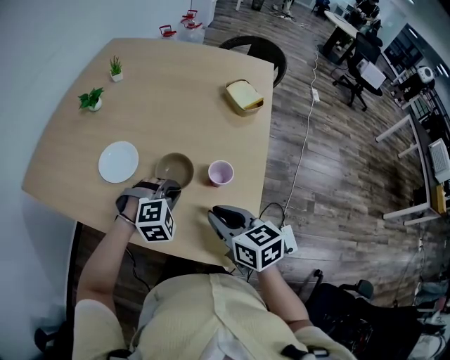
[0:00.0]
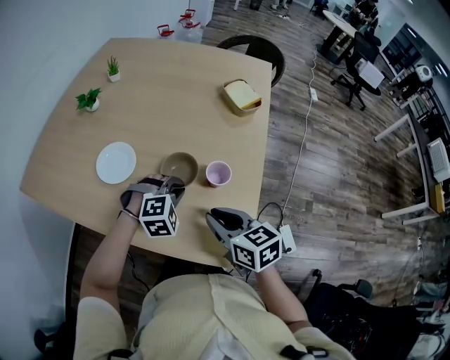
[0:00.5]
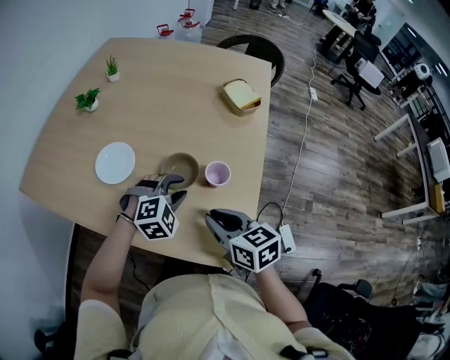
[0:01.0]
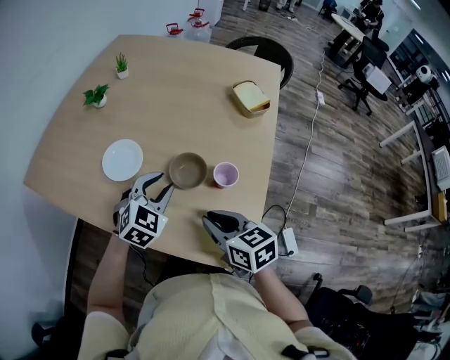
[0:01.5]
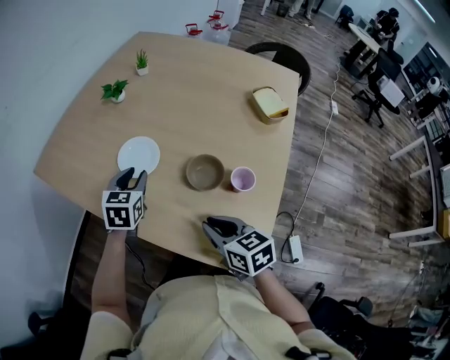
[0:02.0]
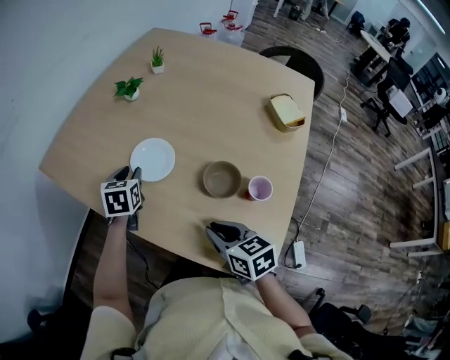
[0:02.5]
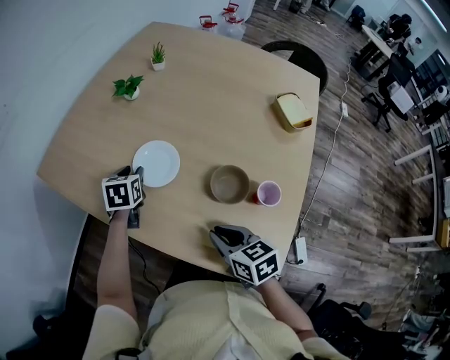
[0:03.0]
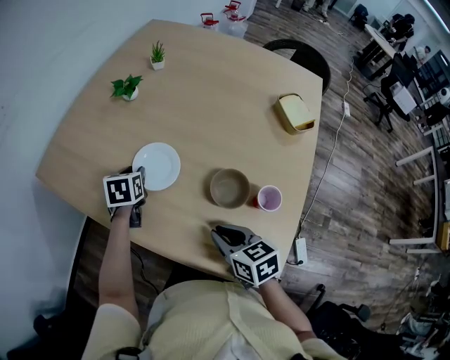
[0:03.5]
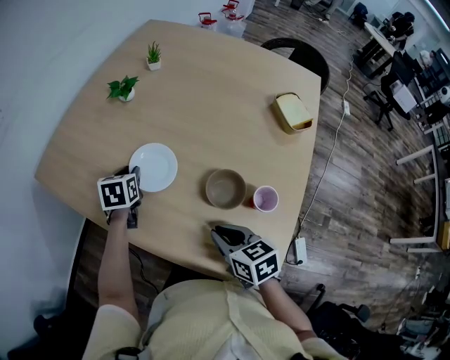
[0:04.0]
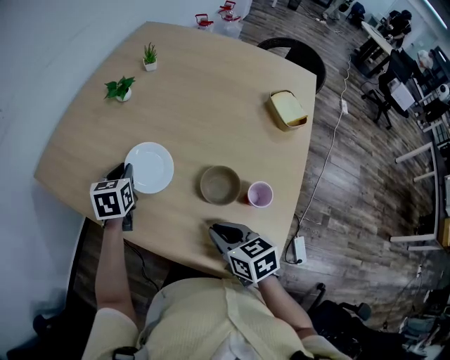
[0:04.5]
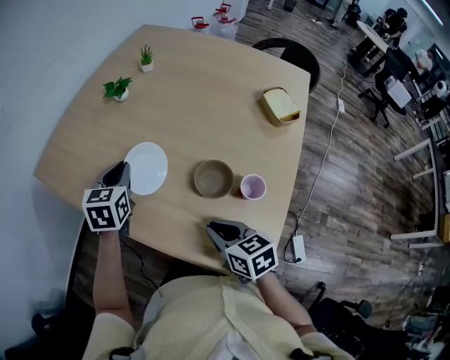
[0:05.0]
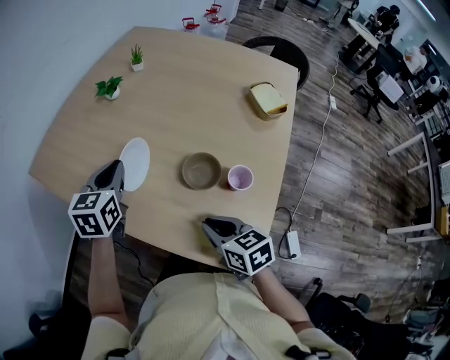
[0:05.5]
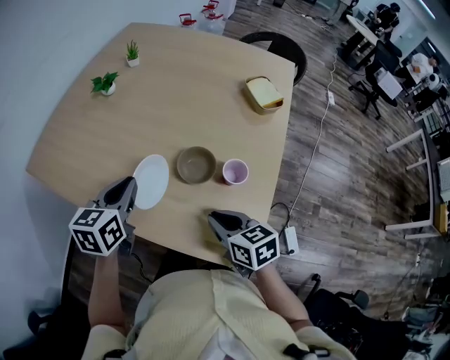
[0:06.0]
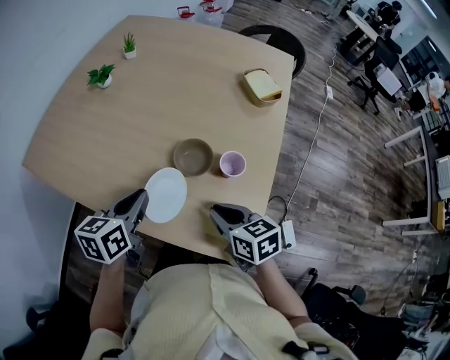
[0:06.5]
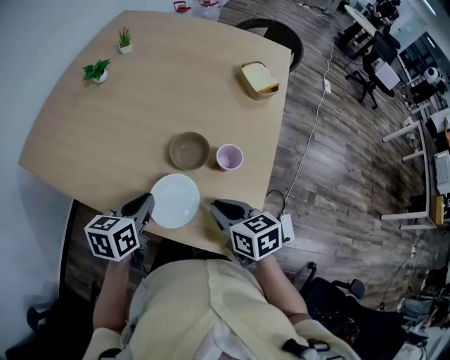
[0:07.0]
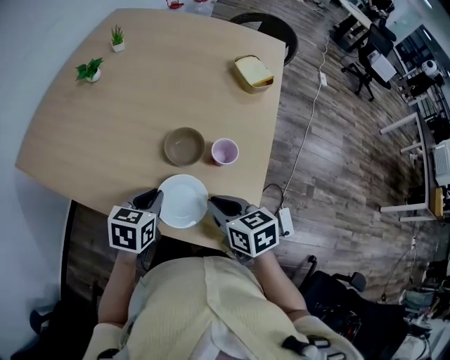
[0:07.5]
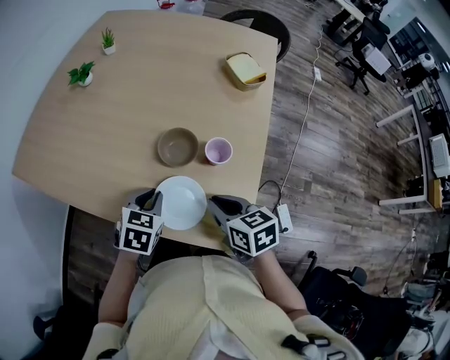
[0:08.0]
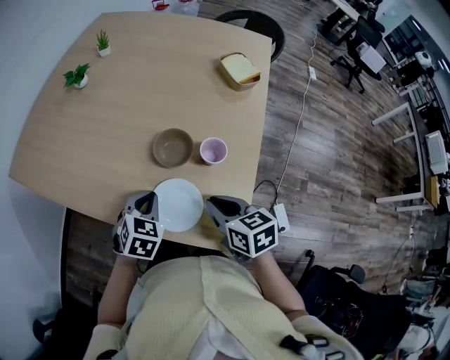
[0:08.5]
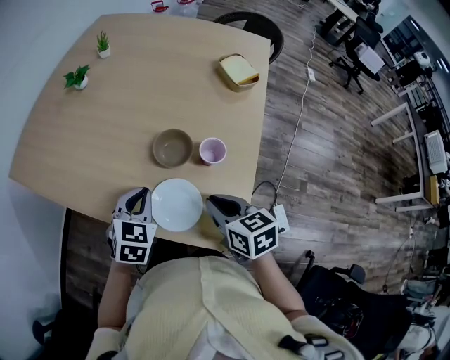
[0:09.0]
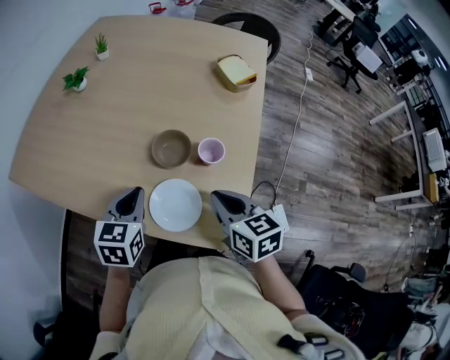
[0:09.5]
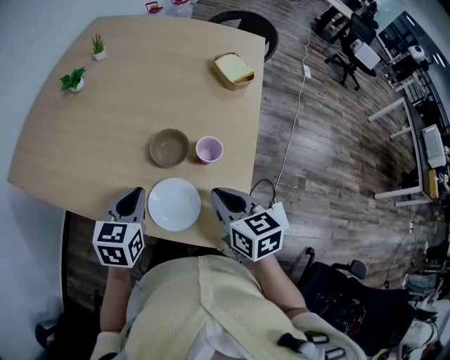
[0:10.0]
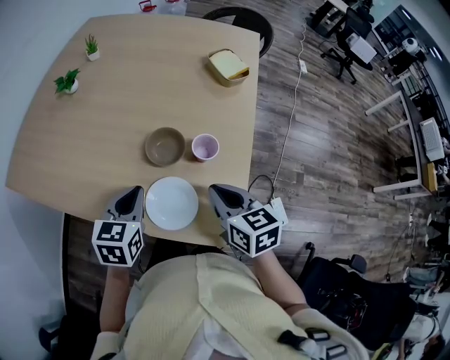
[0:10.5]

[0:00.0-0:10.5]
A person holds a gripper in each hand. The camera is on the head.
0:00.0 to 0:02.0: The left gripper is displaced to the left and forward by about 20 cm, rotates around the line of its fingers by roughly 70 degrees, counterclockwise from behind, and opens up. Meanwhile the right gripper moves to the left, roughly 5 cm.
0:02.0 to 0:04.0: The left gripper shifts roughly 15 cm forward, downward and to the left, and changes its angle by some 20 degrees; the right gripper ends up approximately 5 cm from where it was.
0:04.0 to 0:06.5: The left gripper travels backward, upward and to the right by some 25 cm, rotates some 30 degrees, and closes up. Meanwhile the right gripper shifts roughly 10 cm to the right and backward.
0:06.5 to 0:08.5: The left gripper is displaced downward and to the right by roughly 10 cm, and rotates about 40 degrees.
0:08.5 to 0:10.5: The left gripper goes roughly 5 cm upward, and swivels some 20 degrees.

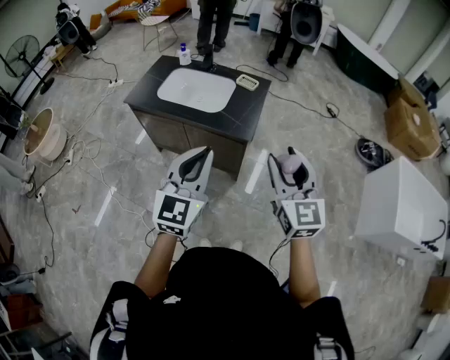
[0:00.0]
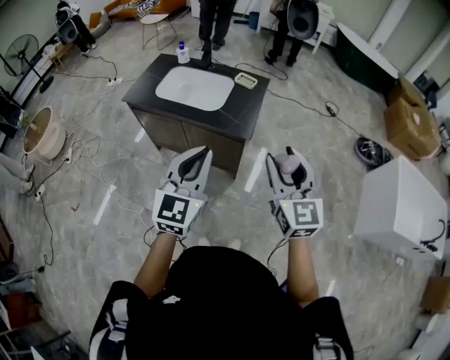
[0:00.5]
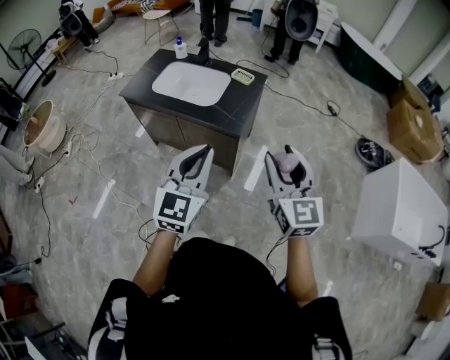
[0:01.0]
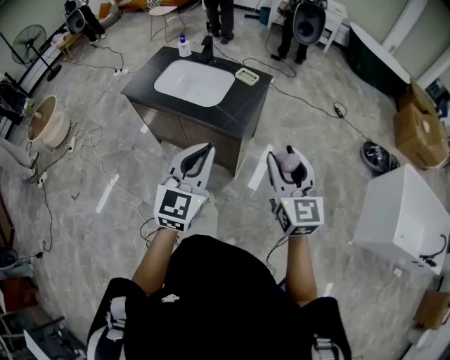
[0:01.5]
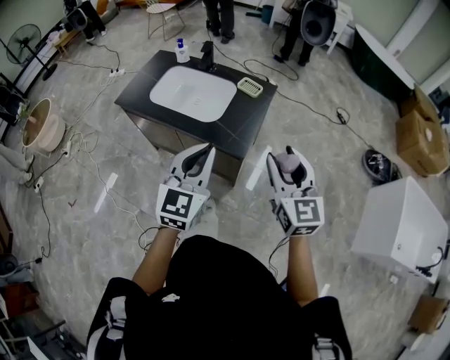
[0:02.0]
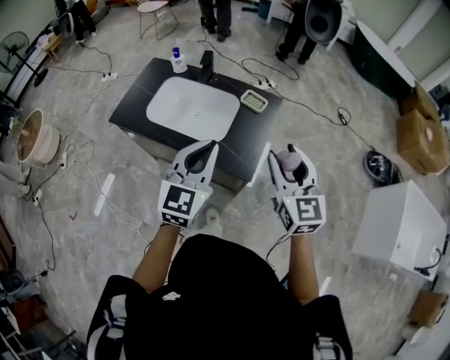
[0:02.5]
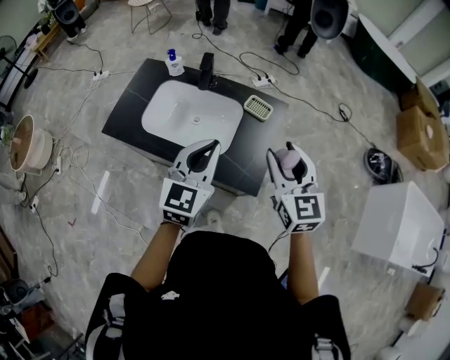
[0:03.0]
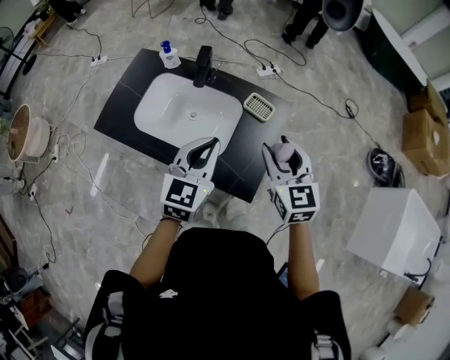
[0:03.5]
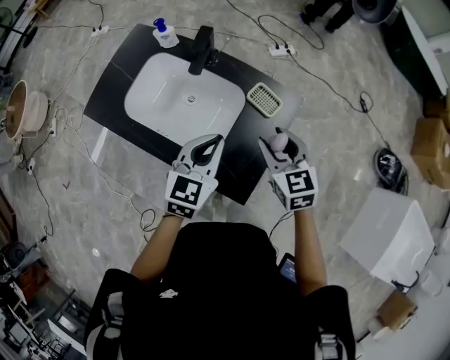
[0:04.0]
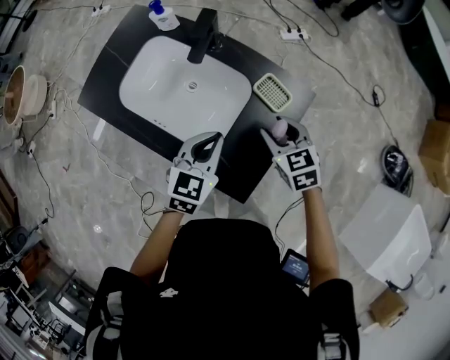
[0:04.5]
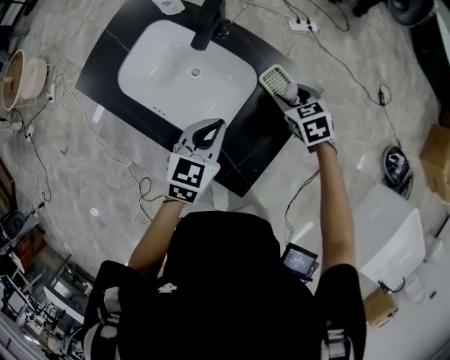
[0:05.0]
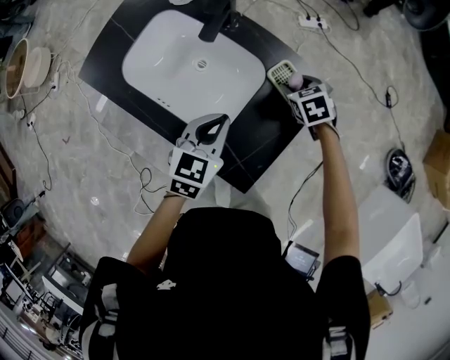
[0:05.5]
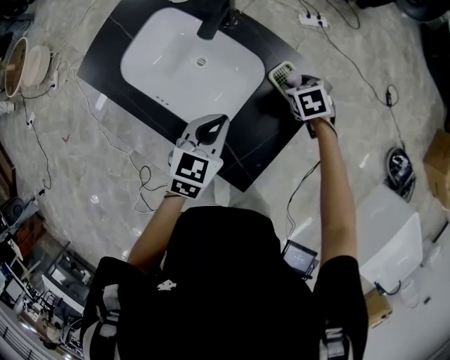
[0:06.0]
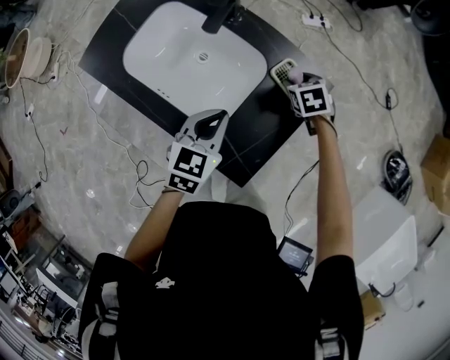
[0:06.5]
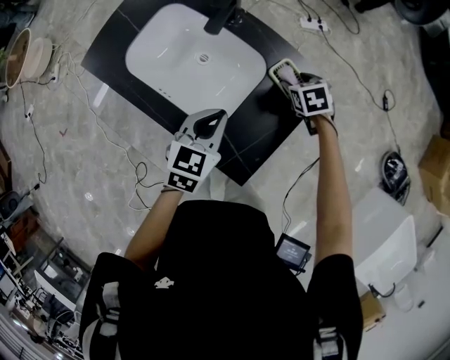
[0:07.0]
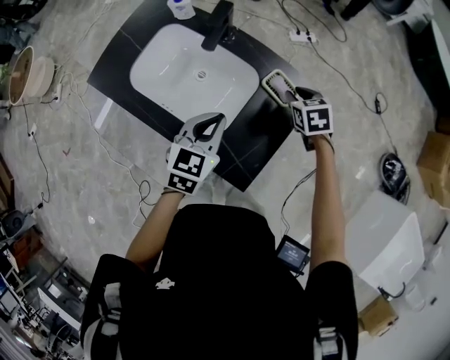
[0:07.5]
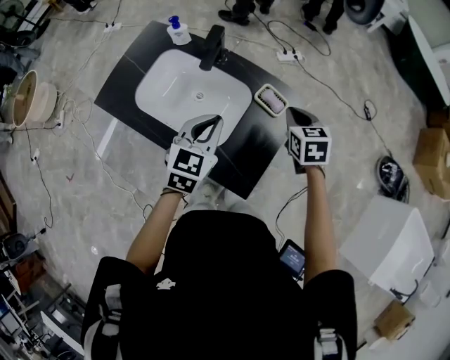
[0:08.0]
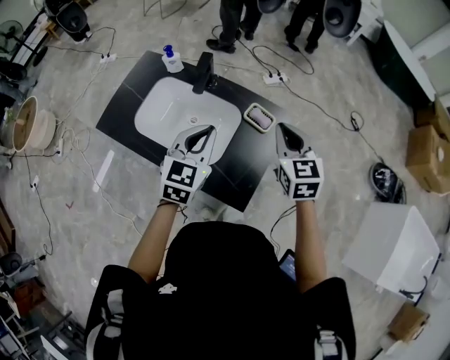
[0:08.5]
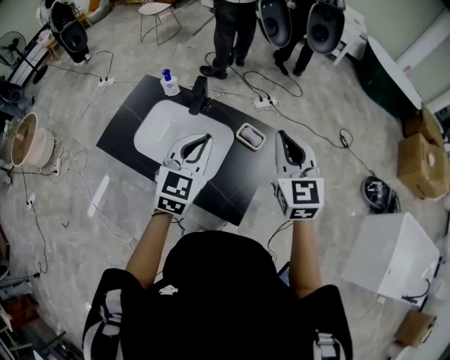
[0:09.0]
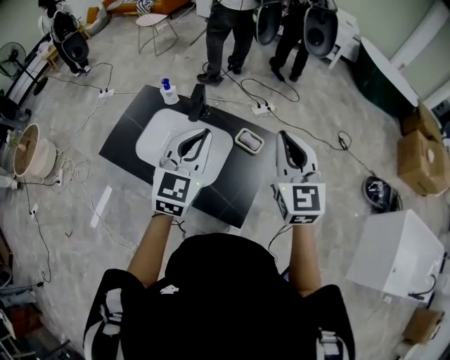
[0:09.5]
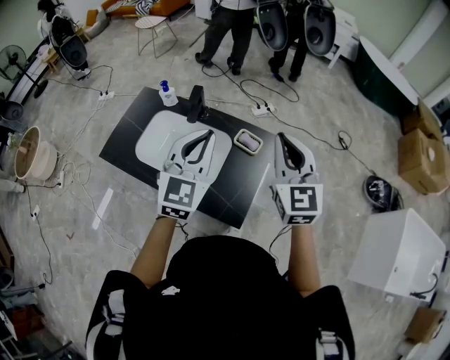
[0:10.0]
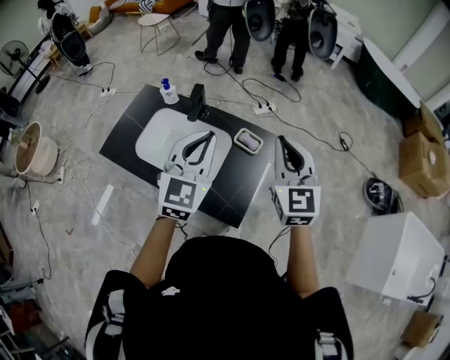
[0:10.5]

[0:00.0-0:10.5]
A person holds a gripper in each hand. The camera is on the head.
0:00.0 to 0:02.0: Both grippers move forward, about 15 cm.
0:02.0 to 0:04.0: The grippers both shift forward and downward by about 35 cm. The left gripper changes its angle by roughly 20 degrees. The right gripper changes its angle by about 30 degrees.
0:04.0 to 0:06.5: The right gripper is displaced downward and forward by approximately 25 cm, and tilts its fingers about 30 degrees downward. The left gripper shifts some 10 cm downward.
0:06.5 to 0:08.5: The right gripper goes roughly 30 cm upward and backward, angles its fingers upward, by about 40 degrees, and closes. The left gripper travels upward by approximately 15 cm, and turns by some 20 degrees.
0:08.5 to 0:10.5: The grippers both shift upward by approximately 15 cm. The right gripper turns by some 20 degrees.

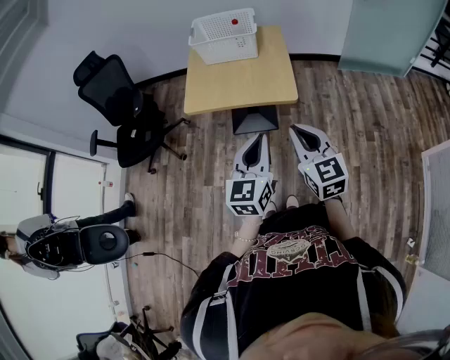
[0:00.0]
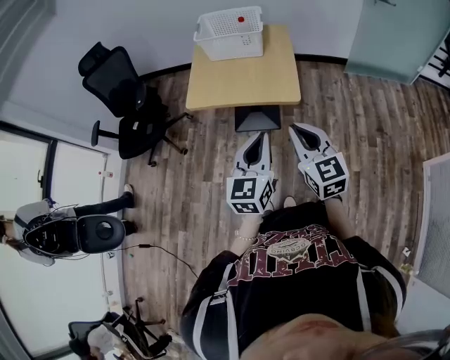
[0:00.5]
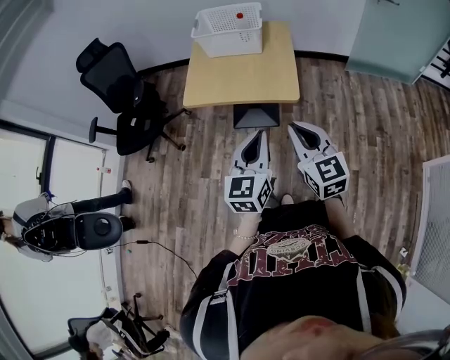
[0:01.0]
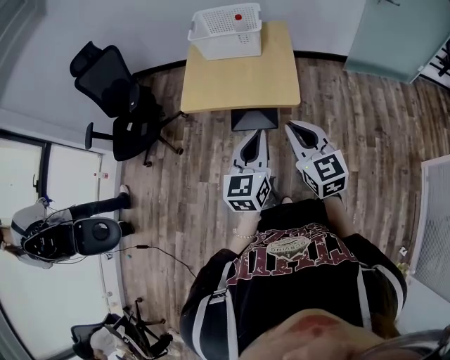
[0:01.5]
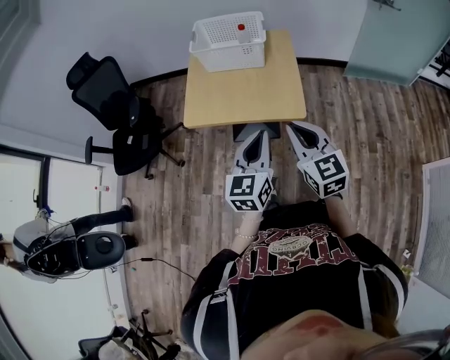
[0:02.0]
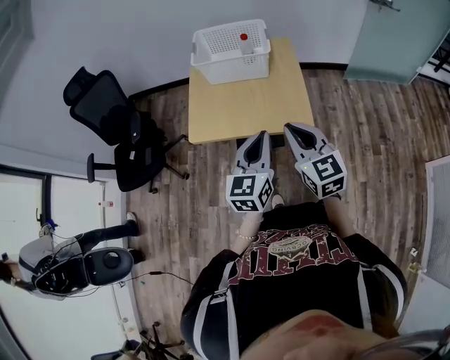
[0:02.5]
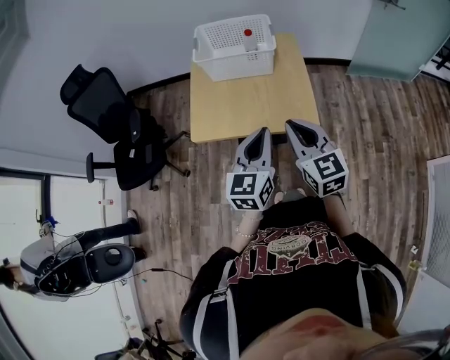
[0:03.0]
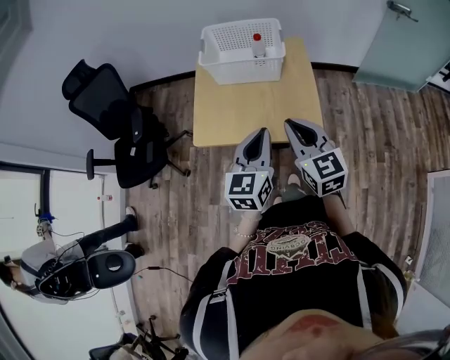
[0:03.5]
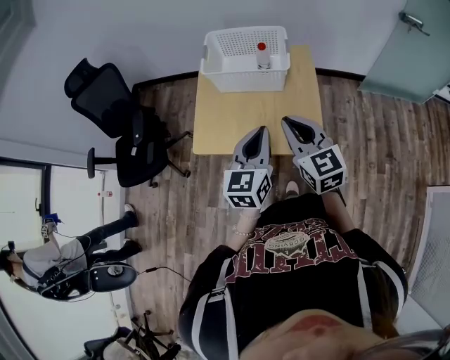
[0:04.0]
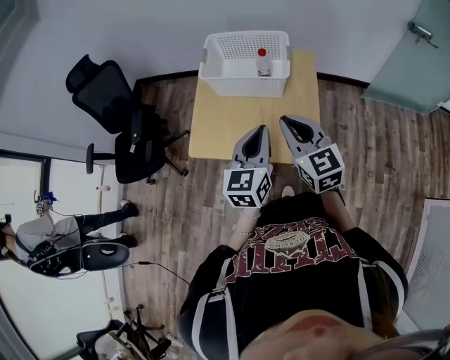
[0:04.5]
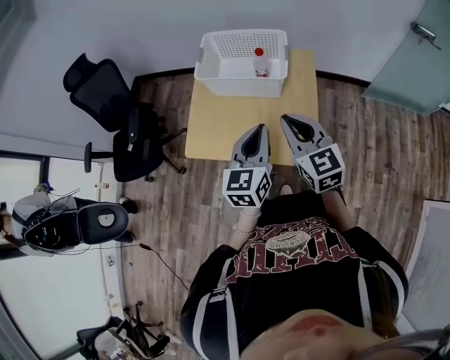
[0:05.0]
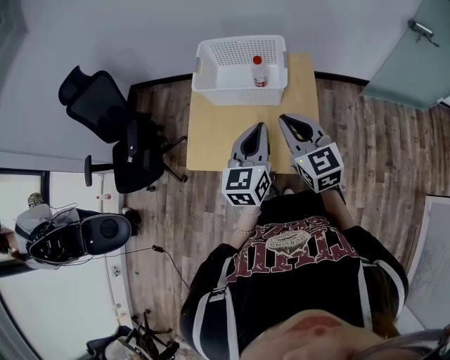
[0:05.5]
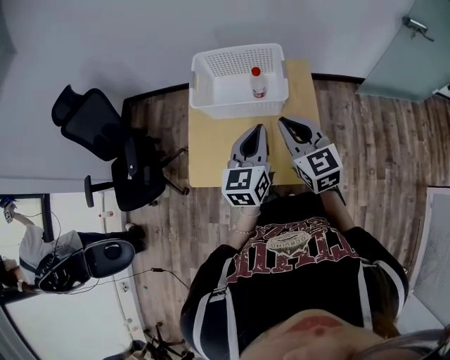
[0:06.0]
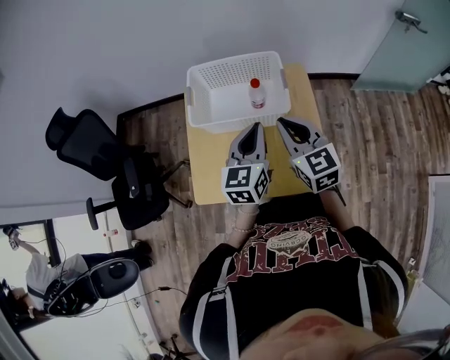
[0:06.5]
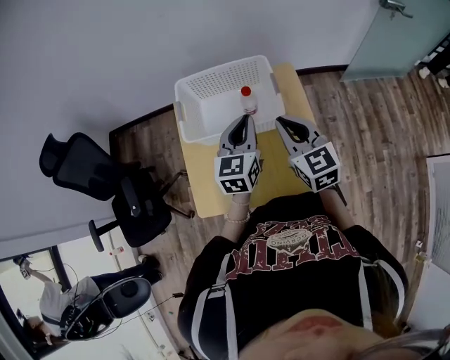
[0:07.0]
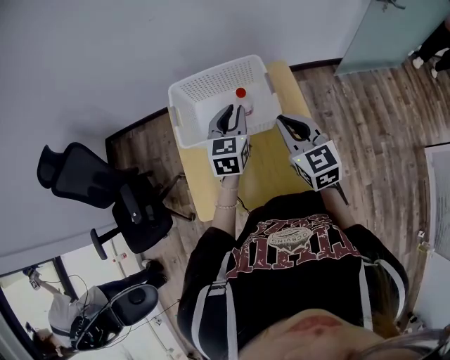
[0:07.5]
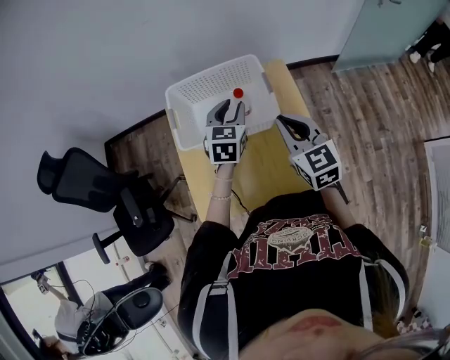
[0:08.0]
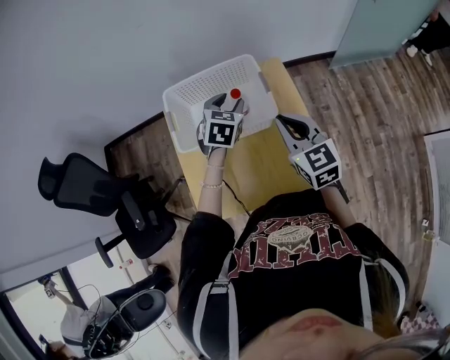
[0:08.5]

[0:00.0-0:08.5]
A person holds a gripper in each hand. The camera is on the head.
0:00.0 to 0:02.0: Both grippers move forward, approximately 15 cm.
0:02.0 to 0:04.0: Both grippers move forward, approximately 20 cm.
0:04.0 to 0:06.5: The two grippers go about 20 cm forward.
0:06.5 to 0:08.5: The right gripper changes place by approximately 5 cm; the left gripper shifts some 20 cm forward and downward, changes its angle by about 40 degrees, and opens.
